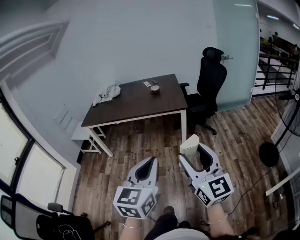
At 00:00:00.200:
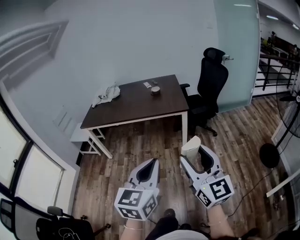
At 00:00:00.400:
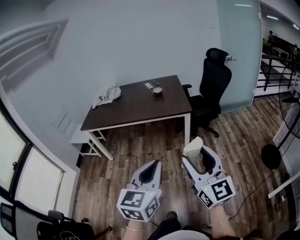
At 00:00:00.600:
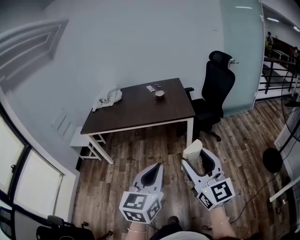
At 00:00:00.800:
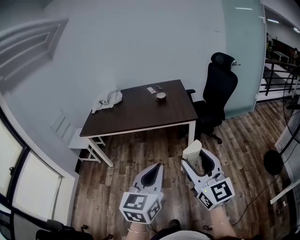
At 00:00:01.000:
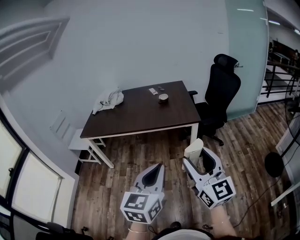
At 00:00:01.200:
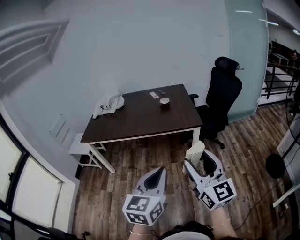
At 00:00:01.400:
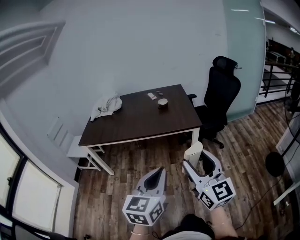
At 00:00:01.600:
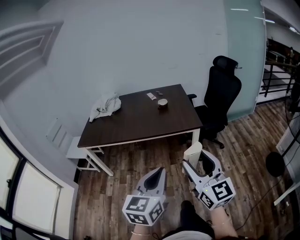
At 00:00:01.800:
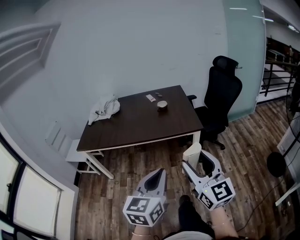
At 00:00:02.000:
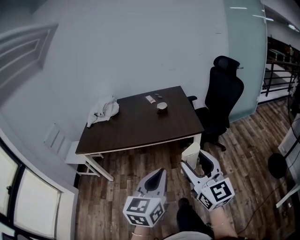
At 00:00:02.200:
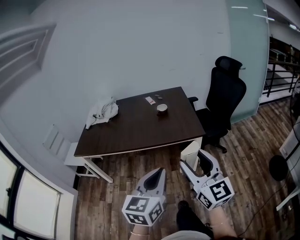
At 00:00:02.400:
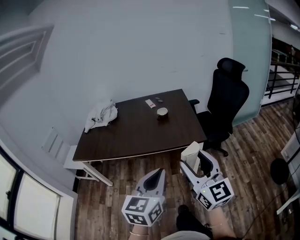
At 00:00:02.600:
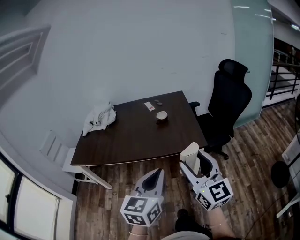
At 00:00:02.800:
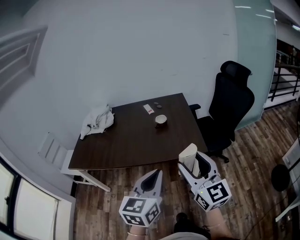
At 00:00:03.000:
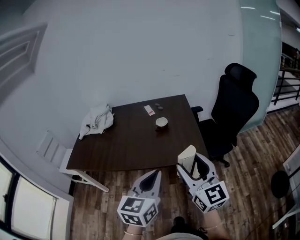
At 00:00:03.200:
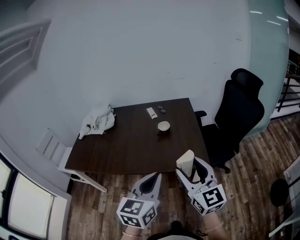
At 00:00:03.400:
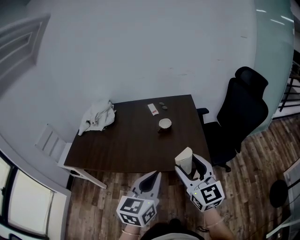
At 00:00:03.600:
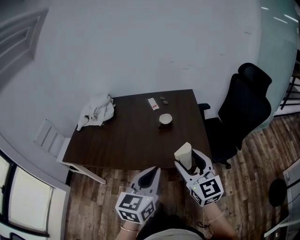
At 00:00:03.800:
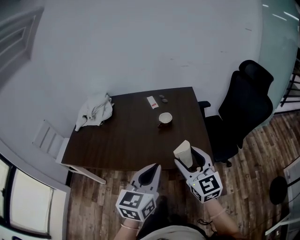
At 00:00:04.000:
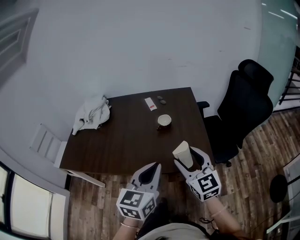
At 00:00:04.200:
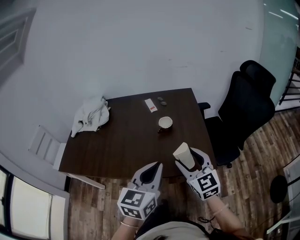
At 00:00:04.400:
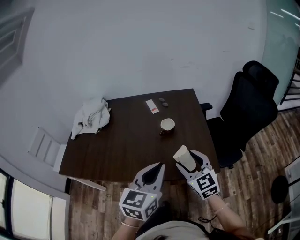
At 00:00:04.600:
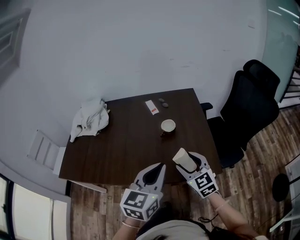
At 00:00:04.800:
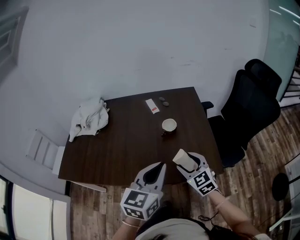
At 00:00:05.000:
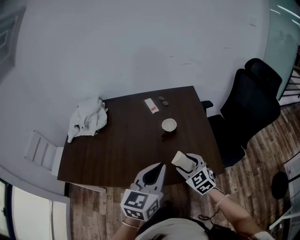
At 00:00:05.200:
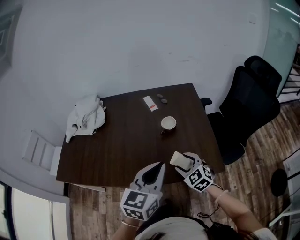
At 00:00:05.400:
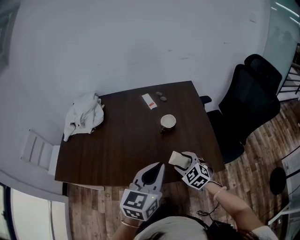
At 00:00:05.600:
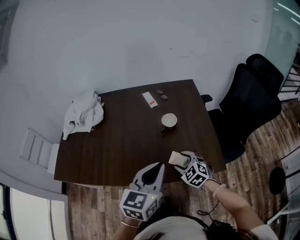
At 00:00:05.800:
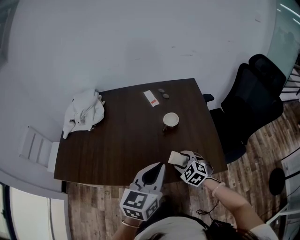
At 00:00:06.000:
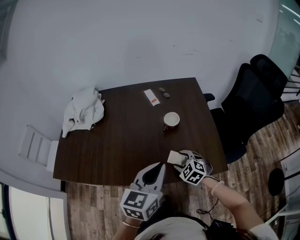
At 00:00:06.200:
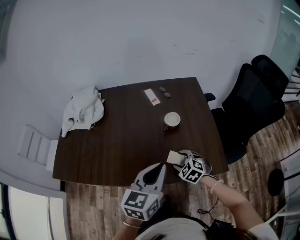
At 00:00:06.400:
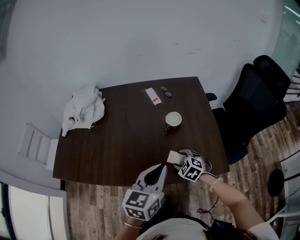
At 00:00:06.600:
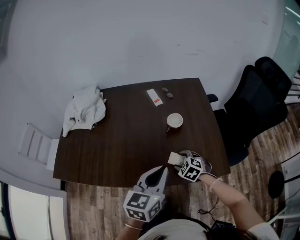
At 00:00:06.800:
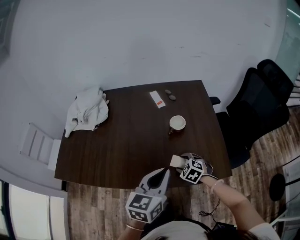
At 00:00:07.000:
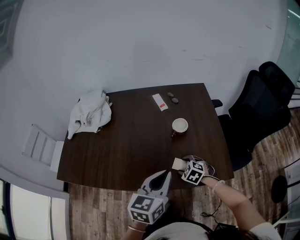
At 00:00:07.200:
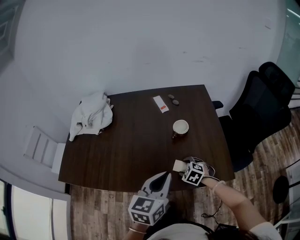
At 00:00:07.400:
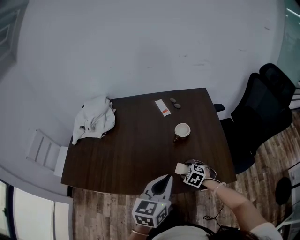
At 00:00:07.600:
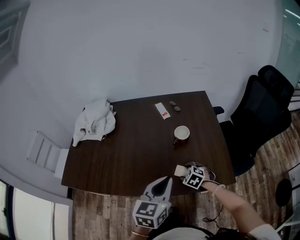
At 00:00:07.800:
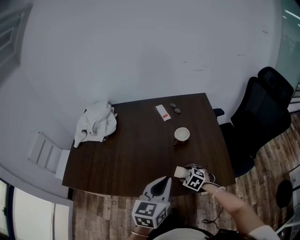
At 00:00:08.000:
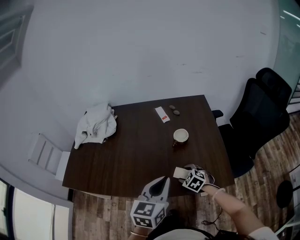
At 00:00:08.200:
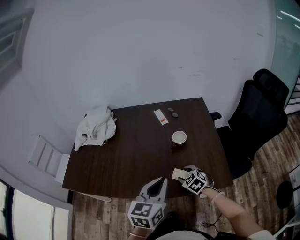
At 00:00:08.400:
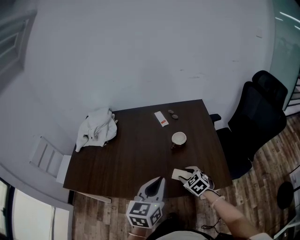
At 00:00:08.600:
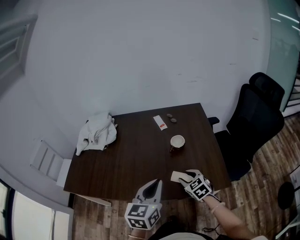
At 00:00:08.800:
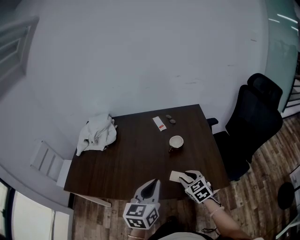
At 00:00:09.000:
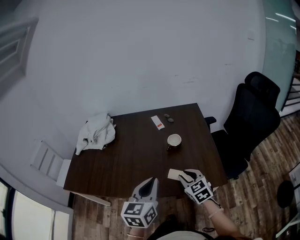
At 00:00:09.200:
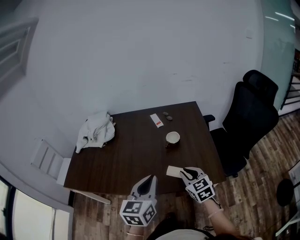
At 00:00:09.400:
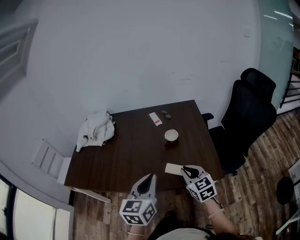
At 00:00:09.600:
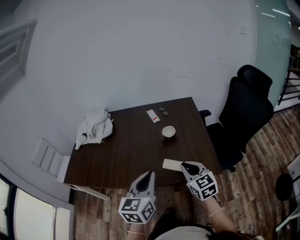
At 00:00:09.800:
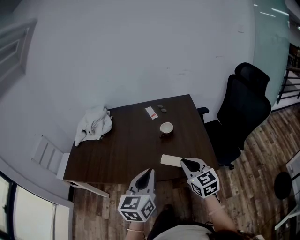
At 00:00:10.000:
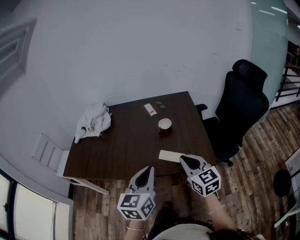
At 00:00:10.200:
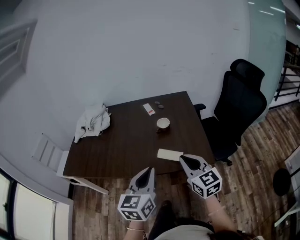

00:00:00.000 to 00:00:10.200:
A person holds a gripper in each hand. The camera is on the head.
00:00:00.000 to 00:00:01.400: The grippers both shift forward and to the left by approximately 25 cm.
00:00:01.400 to 00:00:03.000: Both grippers move forward, roughly 40 cm.
00:00:03.000 to 00:00:04.400: The left gripper moves forward, roughly 25 cm; the right gripper is displaced forward and downward by some 30 cm, and swivels some 30 degrees.
00:00:04.400 to 00:00:05.800: The right gripper moves downward and forward, about 20 cm, and tilts its fingers about 30 degrees downward, while the left gripper moves forward and to the left, some 10 cm.
00:00:05.800 to 00:00:07.200: The right gripper goes some 5 cm downward.
00:00:07.200 to 00:00:08.800: The right gripper heads upward and backward, covering about 15 cm, rotates roughly 40 degrees, and closes. The left gripper goes some 5 cm backward.
00:00:08.800 to 00:00:10.200: The right gripper is displaced backward and upward by about 20 cm, swivels some 30 degrees, and closes. Meanwhile the left gripper is displaced backward by about 15 cm.

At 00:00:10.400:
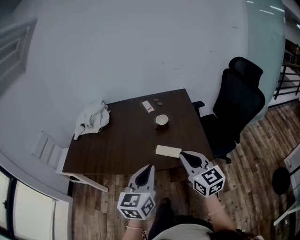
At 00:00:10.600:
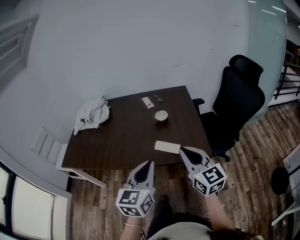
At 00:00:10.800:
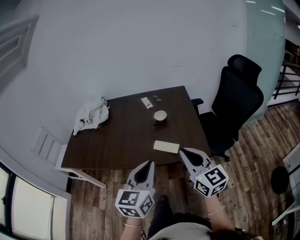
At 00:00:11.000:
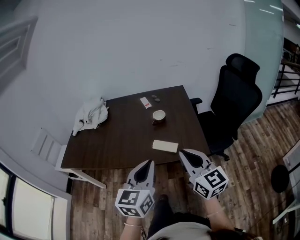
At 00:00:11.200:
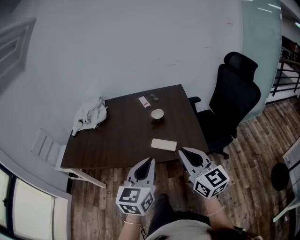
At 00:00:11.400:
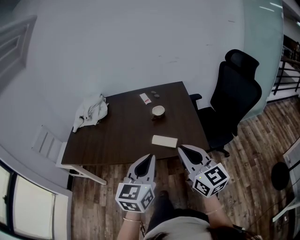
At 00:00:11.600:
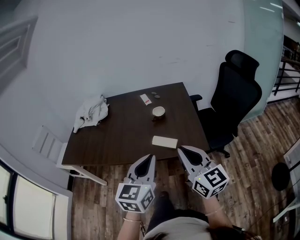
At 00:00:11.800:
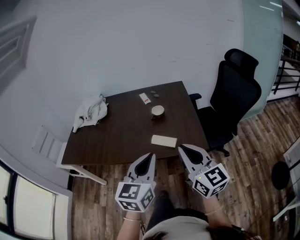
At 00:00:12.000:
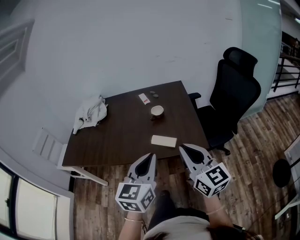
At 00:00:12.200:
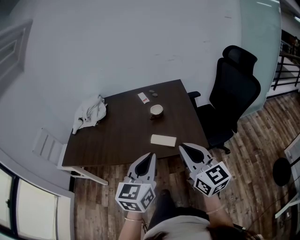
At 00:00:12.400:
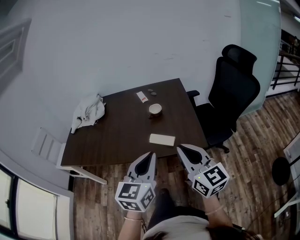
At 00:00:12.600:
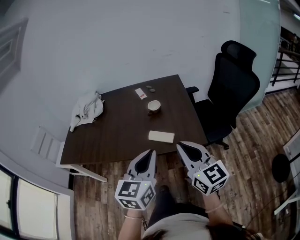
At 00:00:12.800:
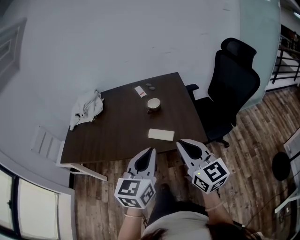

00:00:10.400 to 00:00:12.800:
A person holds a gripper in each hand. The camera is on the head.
00:00:10.400 to 00:00:11.600: The left gripper moves some 5 cm. Meanwhile the right gripper moves backward, about 5 cm.
00:00:11.600 to 00:00:12.800: The grippers make only small movements.

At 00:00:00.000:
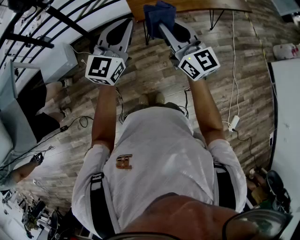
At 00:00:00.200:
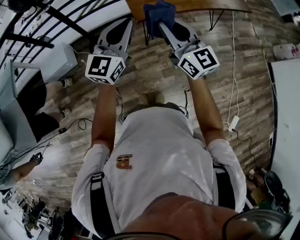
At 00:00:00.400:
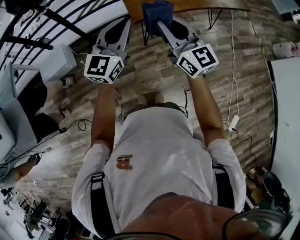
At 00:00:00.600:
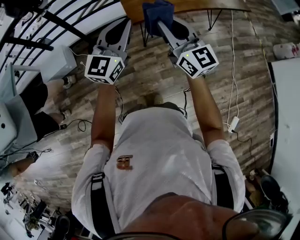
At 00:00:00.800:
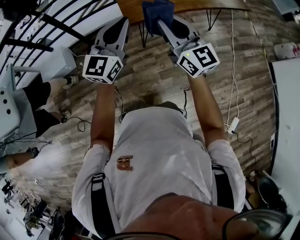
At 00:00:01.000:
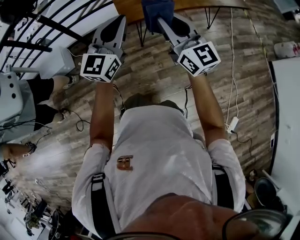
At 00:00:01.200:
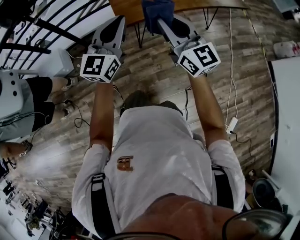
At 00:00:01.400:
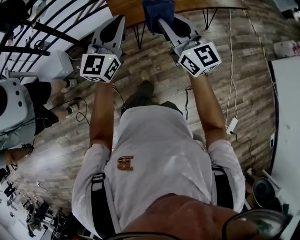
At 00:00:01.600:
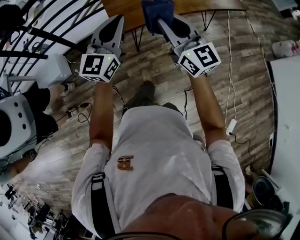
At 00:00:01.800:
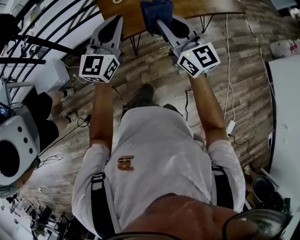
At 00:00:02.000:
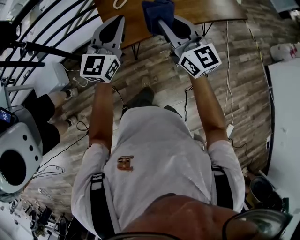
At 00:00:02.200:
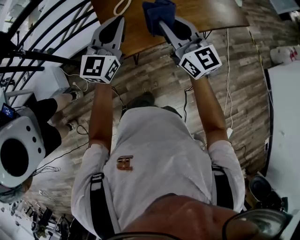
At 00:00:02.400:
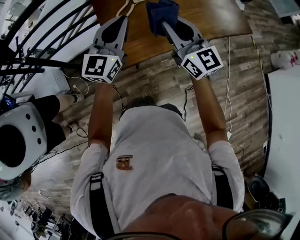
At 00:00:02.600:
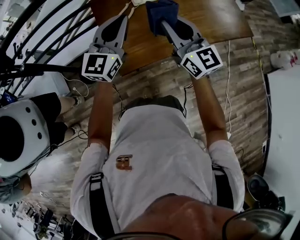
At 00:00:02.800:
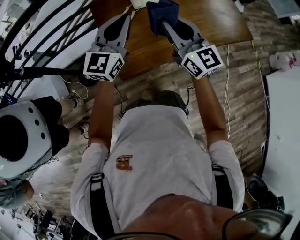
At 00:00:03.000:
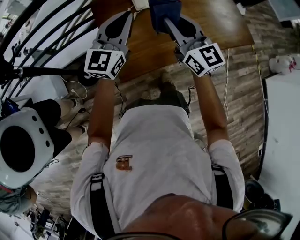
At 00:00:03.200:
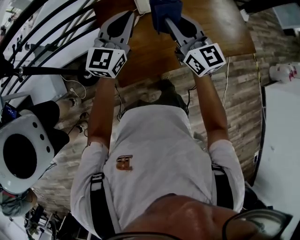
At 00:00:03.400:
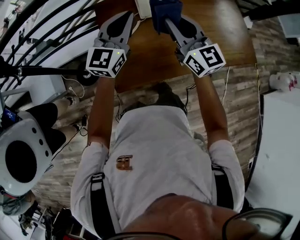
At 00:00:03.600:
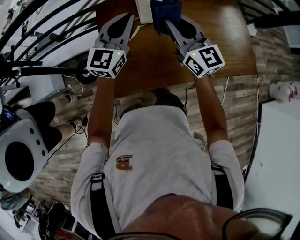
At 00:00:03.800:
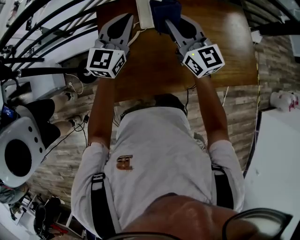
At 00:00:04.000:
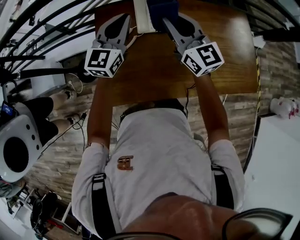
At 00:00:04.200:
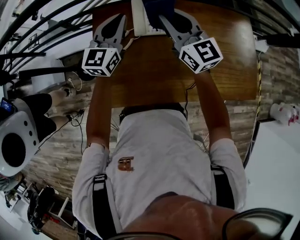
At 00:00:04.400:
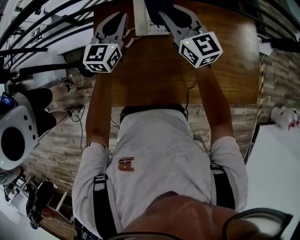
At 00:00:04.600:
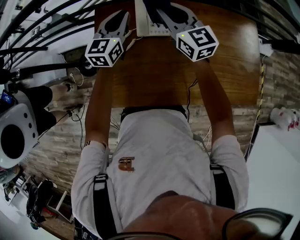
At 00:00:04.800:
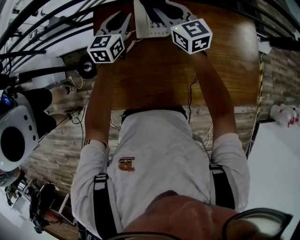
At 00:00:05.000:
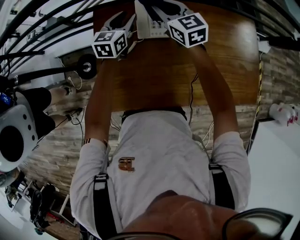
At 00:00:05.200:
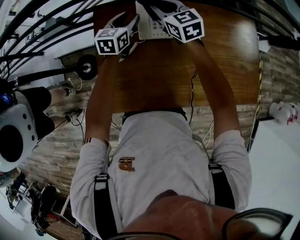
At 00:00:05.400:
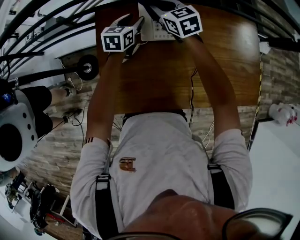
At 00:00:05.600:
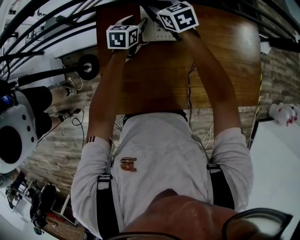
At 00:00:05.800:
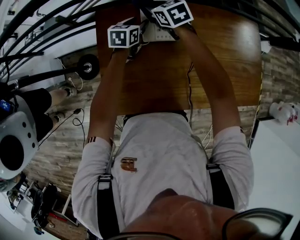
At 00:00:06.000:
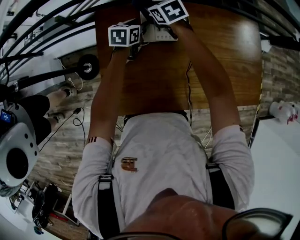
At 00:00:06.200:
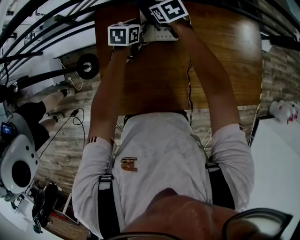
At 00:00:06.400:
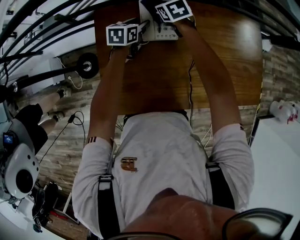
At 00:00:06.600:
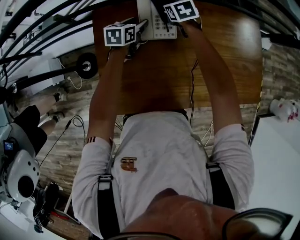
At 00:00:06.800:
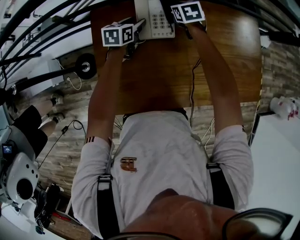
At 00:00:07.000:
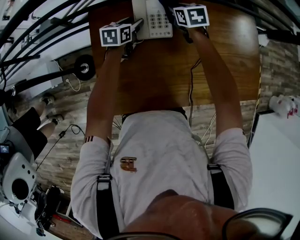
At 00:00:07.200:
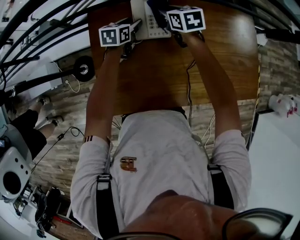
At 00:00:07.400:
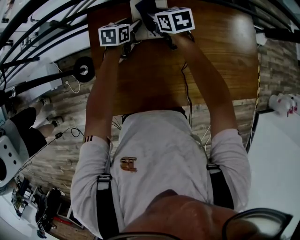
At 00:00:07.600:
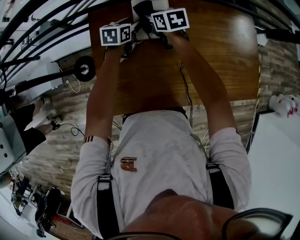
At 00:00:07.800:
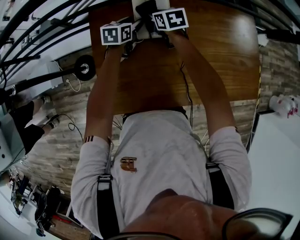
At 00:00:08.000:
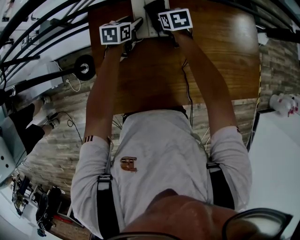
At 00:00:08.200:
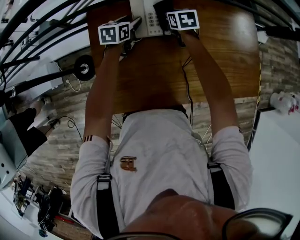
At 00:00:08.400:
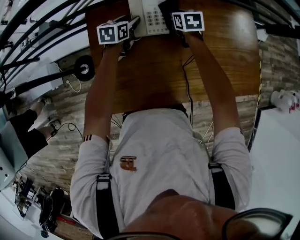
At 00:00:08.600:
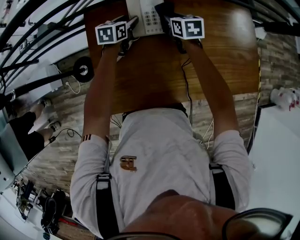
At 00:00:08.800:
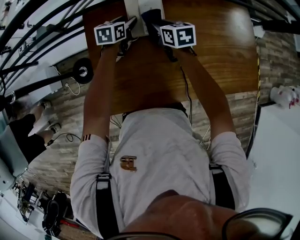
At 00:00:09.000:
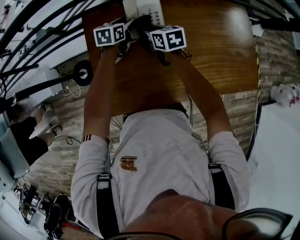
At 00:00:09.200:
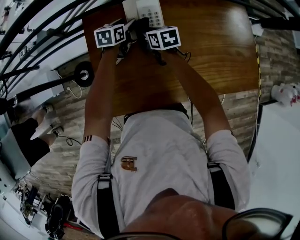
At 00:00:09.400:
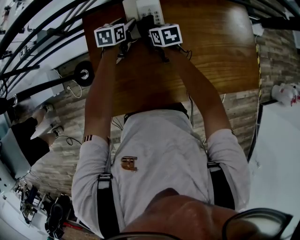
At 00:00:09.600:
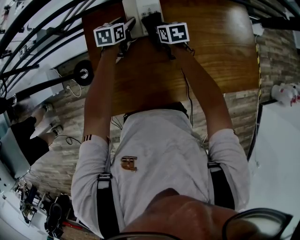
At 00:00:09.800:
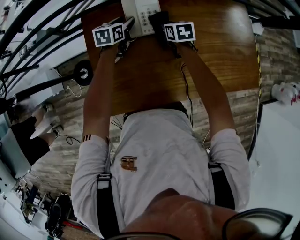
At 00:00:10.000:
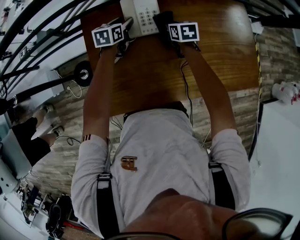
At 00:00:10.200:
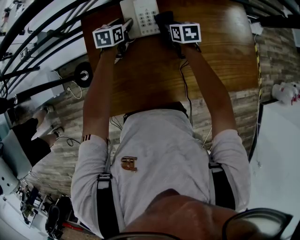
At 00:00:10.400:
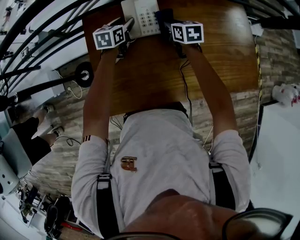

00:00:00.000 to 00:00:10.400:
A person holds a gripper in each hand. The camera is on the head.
00:00:00.000 to 00:00:01.400: The grippers both shift to the right and forward by roughly 15 cm.
00:00:01.400 to 00:00:03.000: Both grippers are carried forward, some 40 cm.
00:00:03.000 to 00:00:04.400: Both grippers move forward and to the right, some 40 cm. The left gripper swivels approximately 30 degrees.
00:00:04.400 to 00:00:06.000: The left gripper goes about 20 cm downward and forward, angles its fingers downward, by some 30 degrees, and opens its fingers; the right gripper travels downward, forward and to the left by approximately 25 cm, and angles its fingers downward, by about 40 degrees.
00:00:06.000 to 00:00:07.400: The right gripper goes about 5 cm to the right.
00:00:07.400 to 00:00:09.000: The right gripper shifts about 10 cm backward, and goes to the right and returns, some 10 cm each way.
00:00:09.000 to 00:00:10.400: The right gripper travels to the right by approximately 10 cm.
